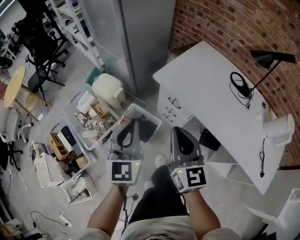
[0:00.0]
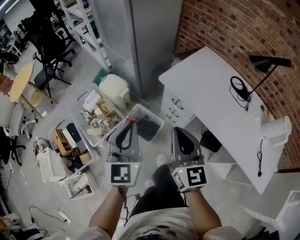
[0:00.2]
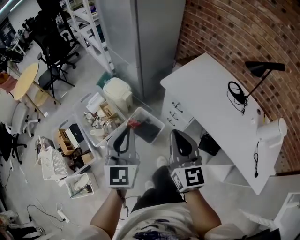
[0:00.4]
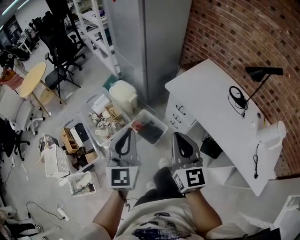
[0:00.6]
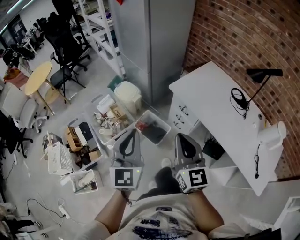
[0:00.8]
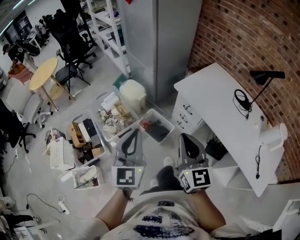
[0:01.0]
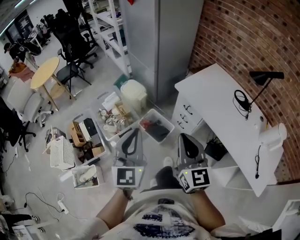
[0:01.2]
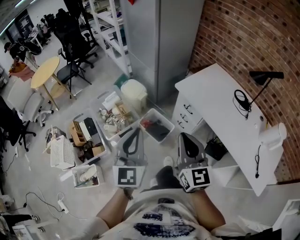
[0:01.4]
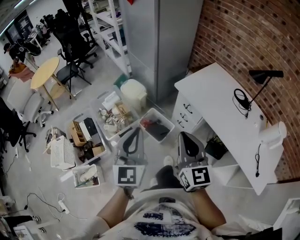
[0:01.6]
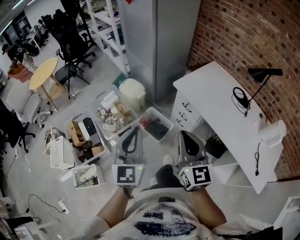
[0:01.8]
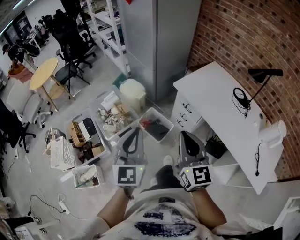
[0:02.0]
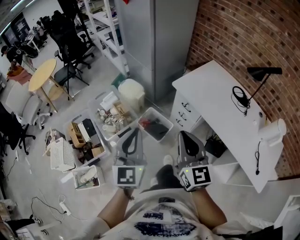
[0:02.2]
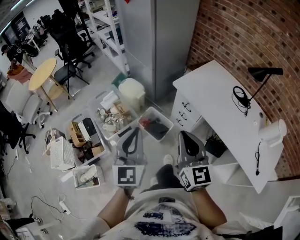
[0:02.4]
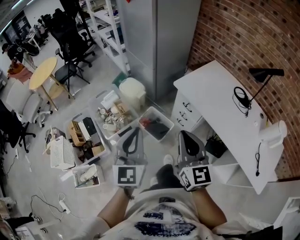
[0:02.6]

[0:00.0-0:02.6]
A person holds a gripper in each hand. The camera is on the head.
0:00.0 to 0:01.2: The grippers both shift backward, upward and to the left by roughly 20 cm.
0:01.2 to 0:02.6: Both grippers stay about where they are.

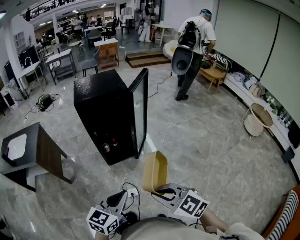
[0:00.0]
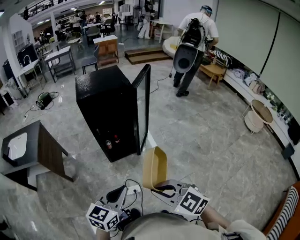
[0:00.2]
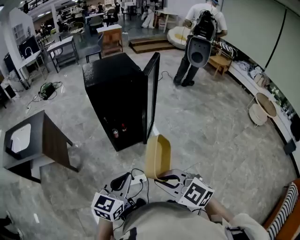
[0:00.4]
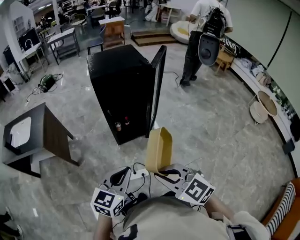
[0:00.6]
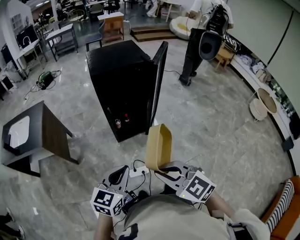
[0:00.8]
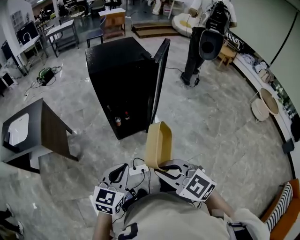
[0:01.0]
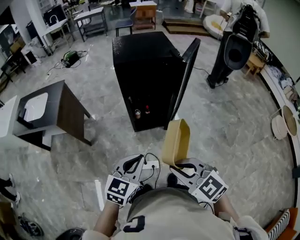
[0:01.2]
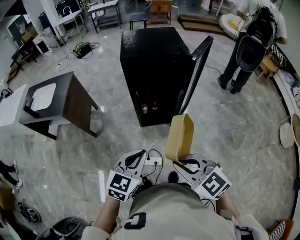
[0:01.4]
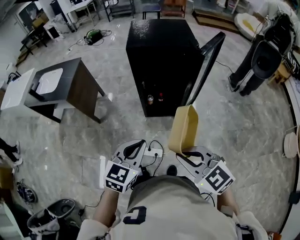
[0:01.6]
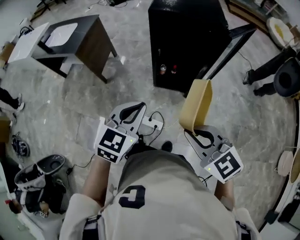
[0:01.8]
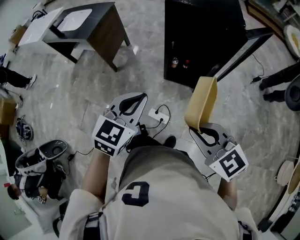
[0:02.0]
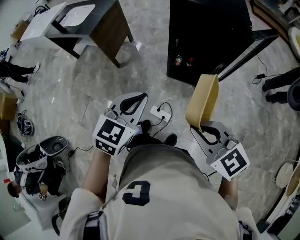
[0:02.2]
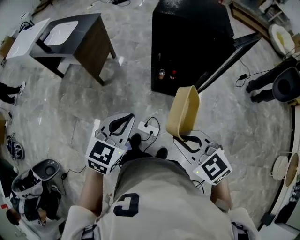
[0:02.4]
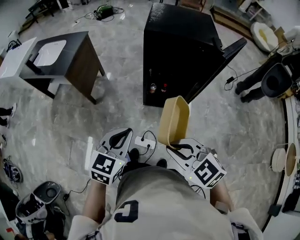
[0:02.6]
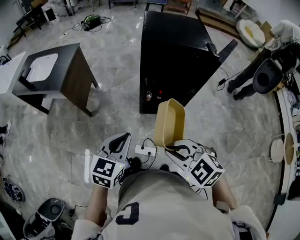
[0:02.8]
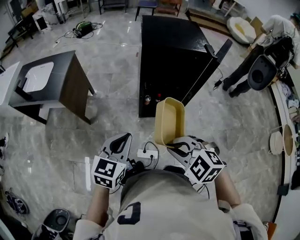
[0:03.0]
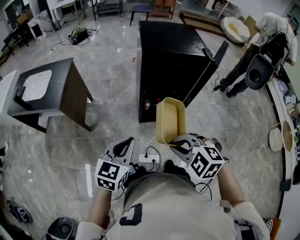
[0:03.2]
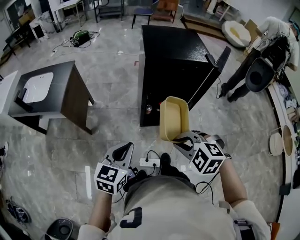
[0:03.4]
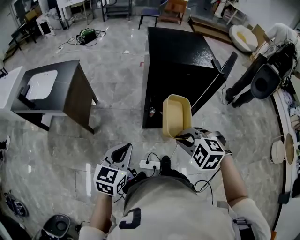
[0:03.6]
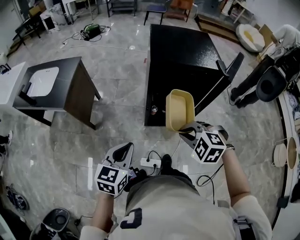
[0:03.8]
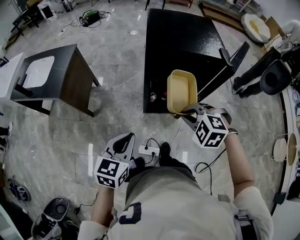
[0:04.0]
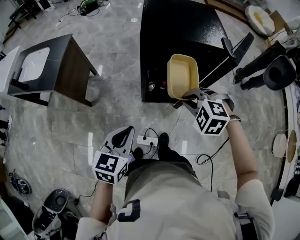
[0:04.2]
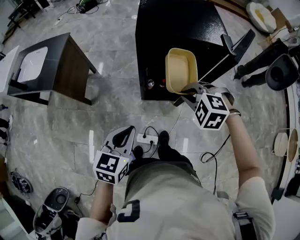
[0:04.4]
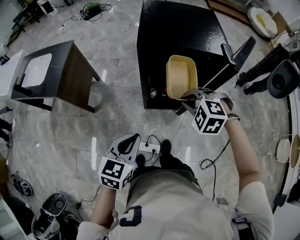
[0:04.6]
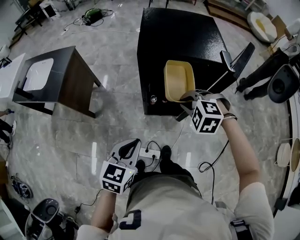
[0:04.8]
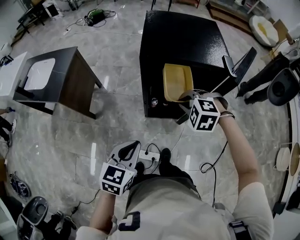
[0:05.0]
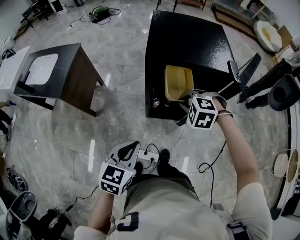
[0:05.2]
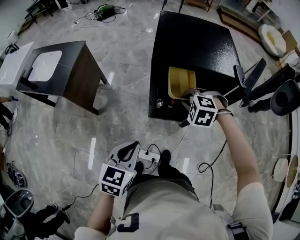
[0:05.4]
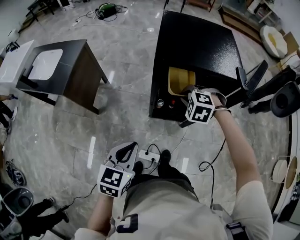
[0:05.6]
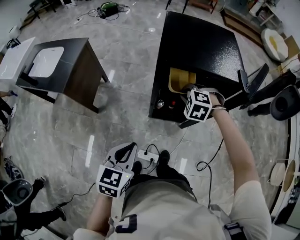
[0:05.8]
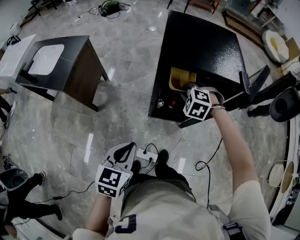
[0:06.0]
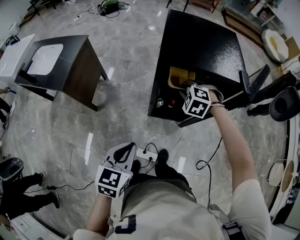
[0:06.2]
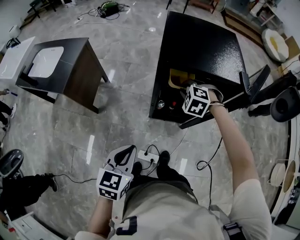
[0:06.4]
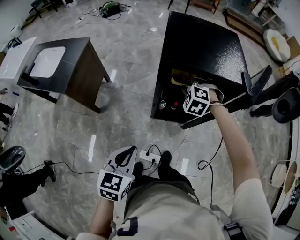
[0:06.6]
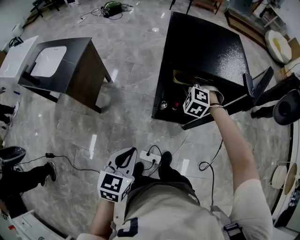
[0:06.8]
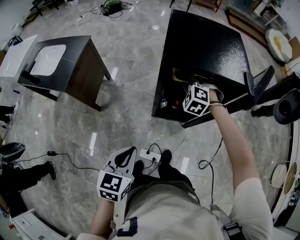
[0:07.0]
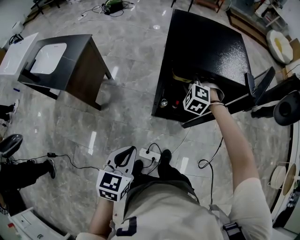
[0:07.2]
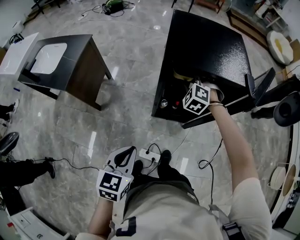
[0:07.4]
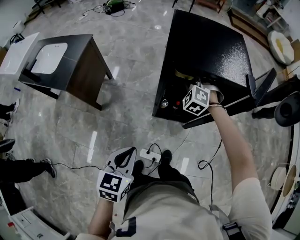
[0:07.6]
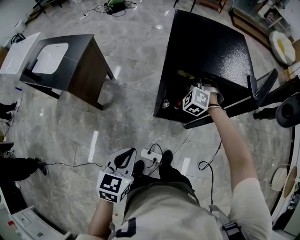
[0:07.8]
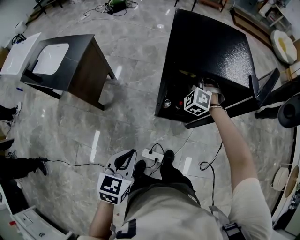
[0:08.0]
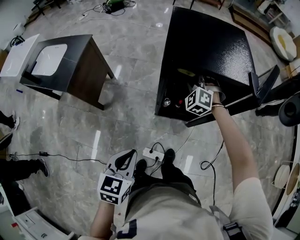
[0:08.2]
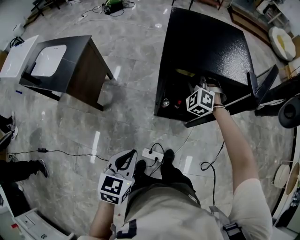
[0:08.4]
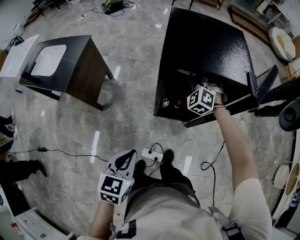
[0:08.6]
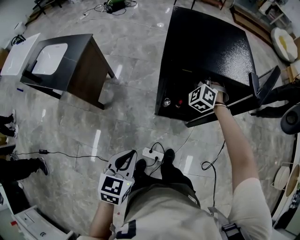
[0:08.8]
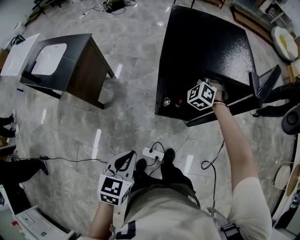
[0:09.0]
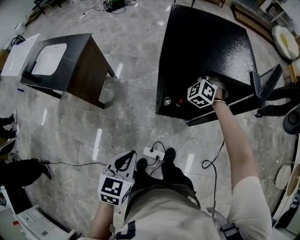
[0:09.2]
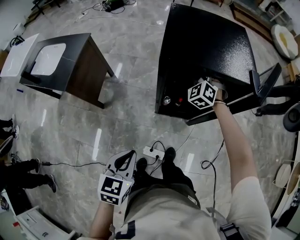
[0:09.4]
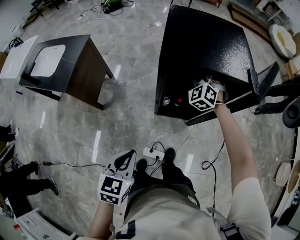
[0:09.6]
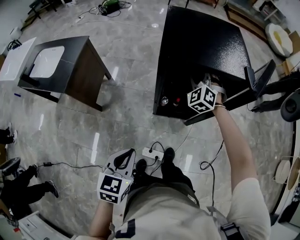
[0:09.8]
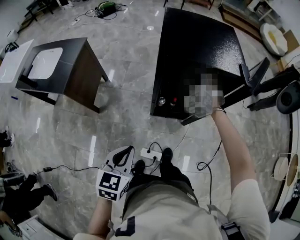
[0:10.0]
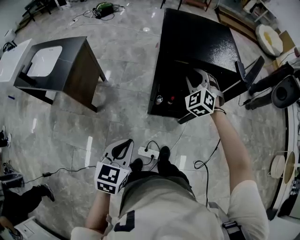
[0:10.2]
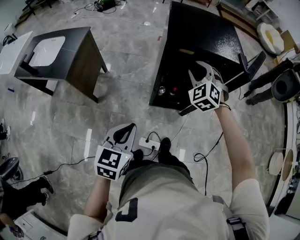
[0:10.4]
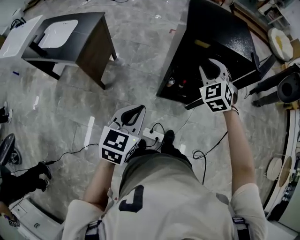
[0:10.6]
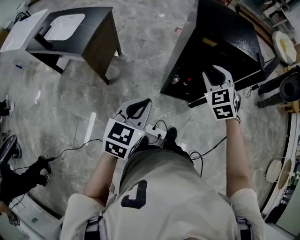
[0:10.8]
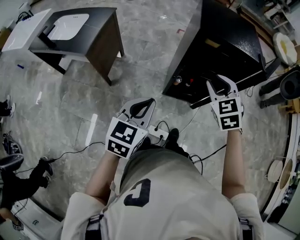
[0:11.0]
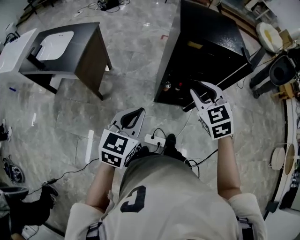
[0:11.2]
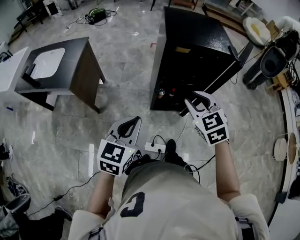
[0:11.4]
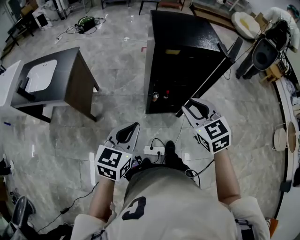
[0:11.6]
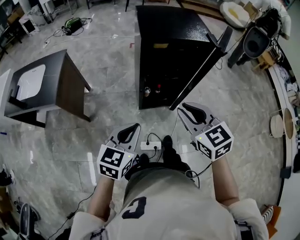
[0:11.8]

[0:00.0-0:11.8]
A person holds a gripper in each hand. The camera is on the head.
0:00.0 to 0:01.4: Both grippers move forward and to the left, about 15 cm.
0:01.4 to 0:03.0: The right gripper goes roughly 15 cm forward, to the left and downward, and swivels some 30 degrees; the left gripper travels forward and to the left by some 15 cm.
0:03.0 to 0:04.4: The left gripper moves forward and to the right, about 10 cm. The right gripper shifts roughly 25 cm forward and to the right, and changes its angle by roughly 20 degrees.
0:04.4 to 0:06.0: The right gripper heads forward, covering roughly 15 cm.
0:06.0 to 0:07.4: The right gripper goes about 10 cm forward.
0:07.4 to 0:08.8: The right gripper changes place by some 5 cm.
0:08.8 to 0:10.4: The right gripper travels backward and upward by approximately 15 cm.
0:10.4 to 0:11.8: The right gripper travels backward by some 25 cm, and rolls clockwise, seen from behind, by about 50 degrees.

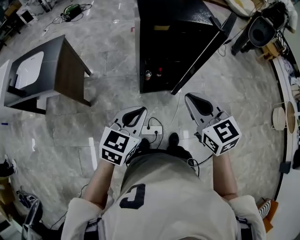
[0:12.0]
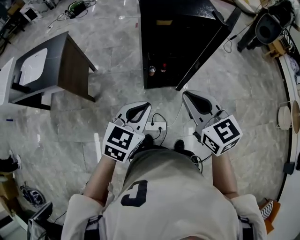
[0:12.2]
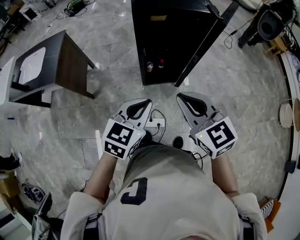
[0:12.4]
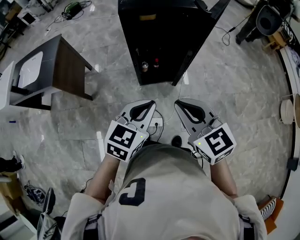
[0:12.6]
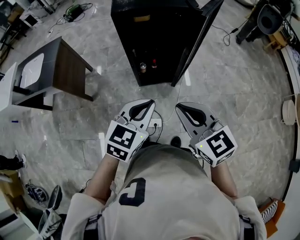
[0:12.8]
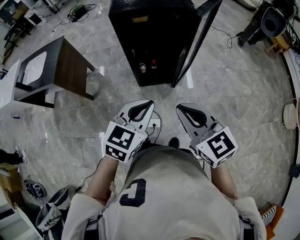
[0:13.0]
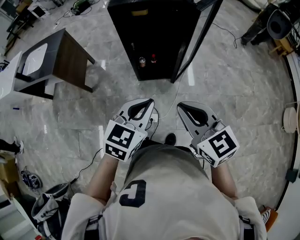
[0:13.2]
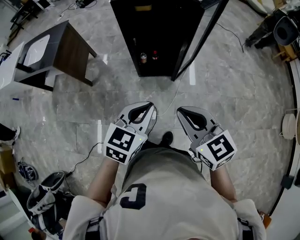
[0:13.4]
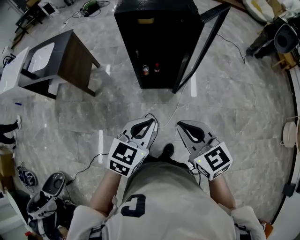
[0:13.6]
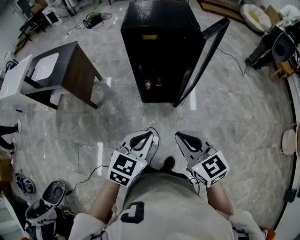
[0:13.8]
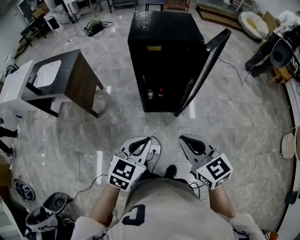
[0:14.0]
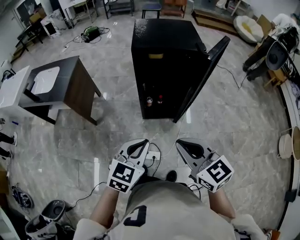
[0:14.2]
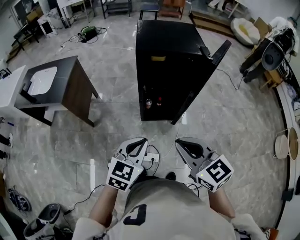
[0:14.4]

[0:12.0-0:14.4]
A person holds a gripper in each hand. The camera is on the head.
0:12.0 to 0:13.2: The right gripper heads to the right and backward, covering roughly 20 cm; the left gripper shifts approximately 20 cm to the right.
0:13.2 to 0:14.4: The right gripper heads to the left and forward, covering approximately 10 cm. Meanwhile the left gripper goes roughly 15 cm to the left.

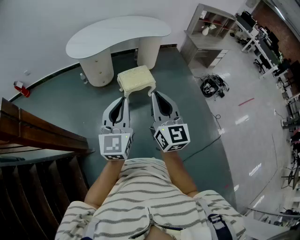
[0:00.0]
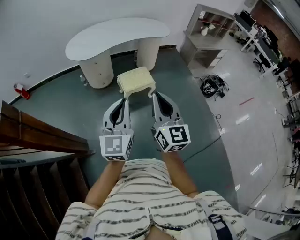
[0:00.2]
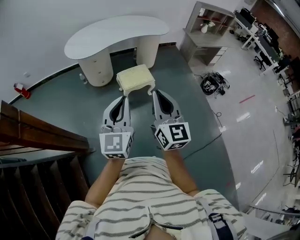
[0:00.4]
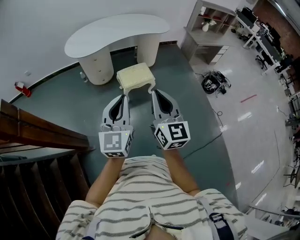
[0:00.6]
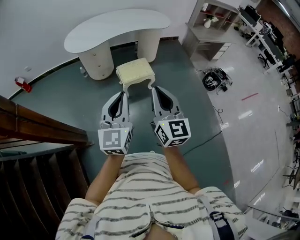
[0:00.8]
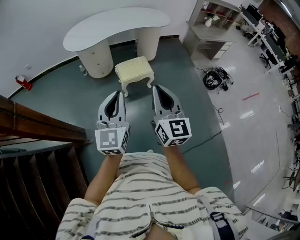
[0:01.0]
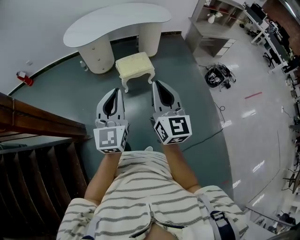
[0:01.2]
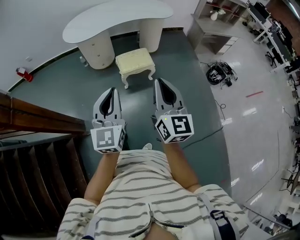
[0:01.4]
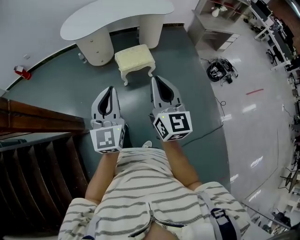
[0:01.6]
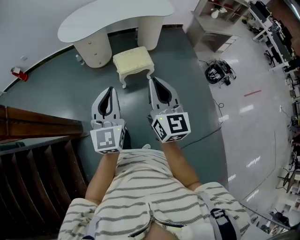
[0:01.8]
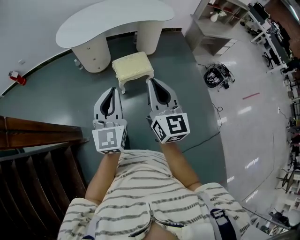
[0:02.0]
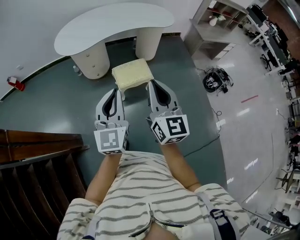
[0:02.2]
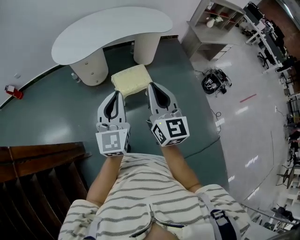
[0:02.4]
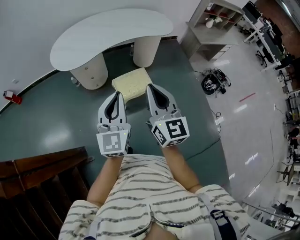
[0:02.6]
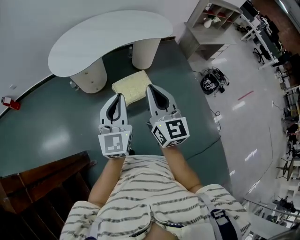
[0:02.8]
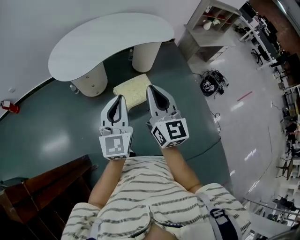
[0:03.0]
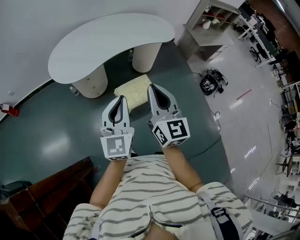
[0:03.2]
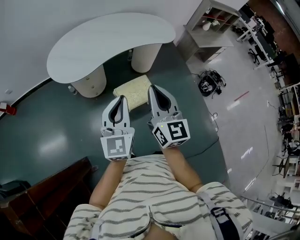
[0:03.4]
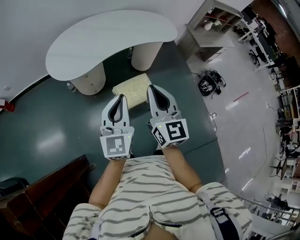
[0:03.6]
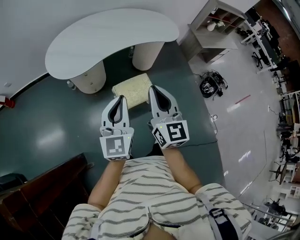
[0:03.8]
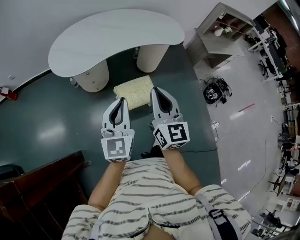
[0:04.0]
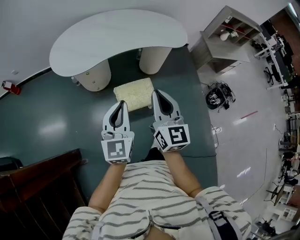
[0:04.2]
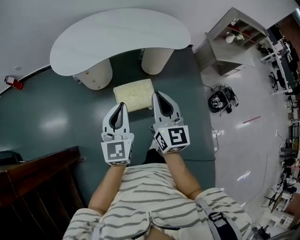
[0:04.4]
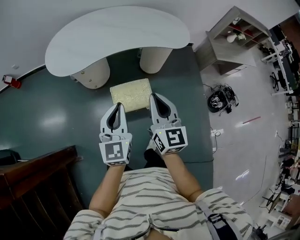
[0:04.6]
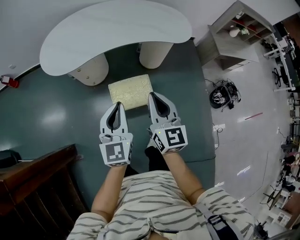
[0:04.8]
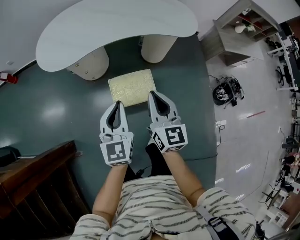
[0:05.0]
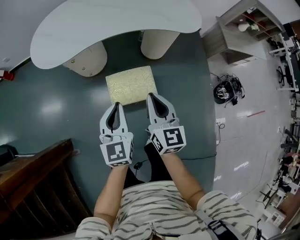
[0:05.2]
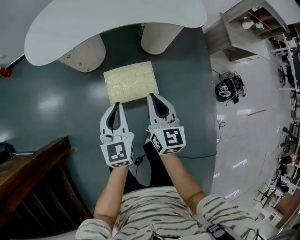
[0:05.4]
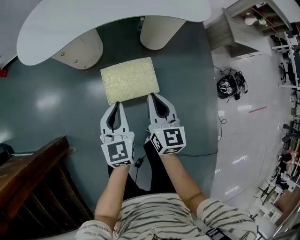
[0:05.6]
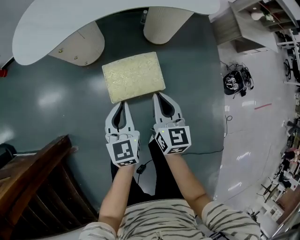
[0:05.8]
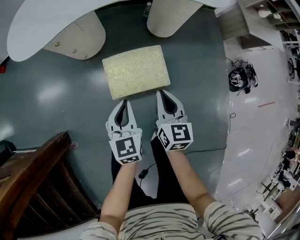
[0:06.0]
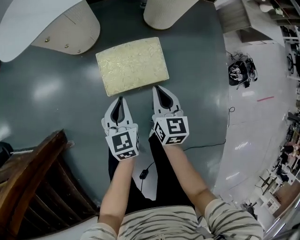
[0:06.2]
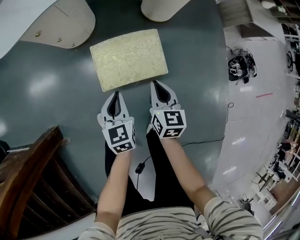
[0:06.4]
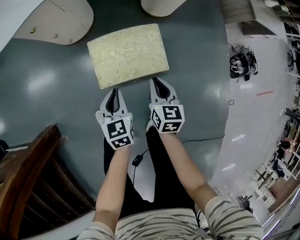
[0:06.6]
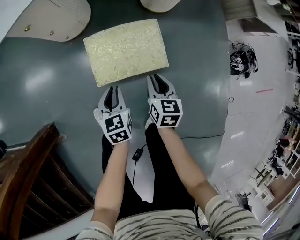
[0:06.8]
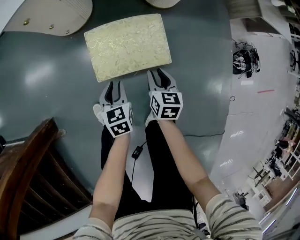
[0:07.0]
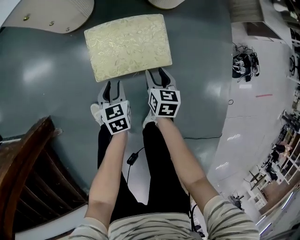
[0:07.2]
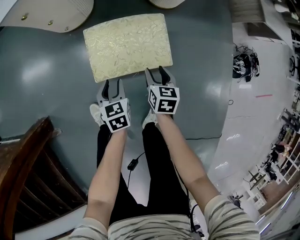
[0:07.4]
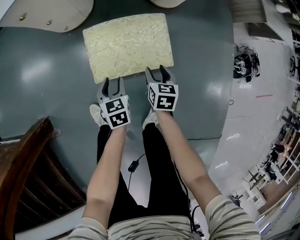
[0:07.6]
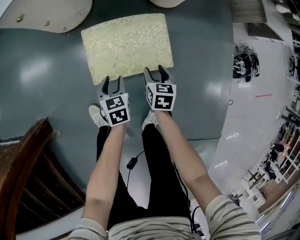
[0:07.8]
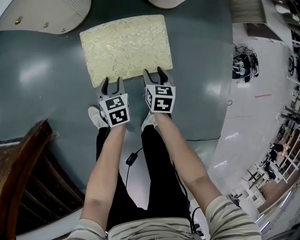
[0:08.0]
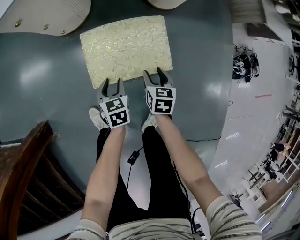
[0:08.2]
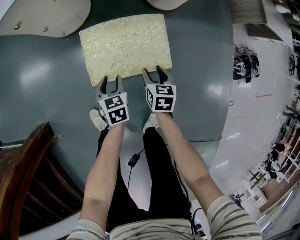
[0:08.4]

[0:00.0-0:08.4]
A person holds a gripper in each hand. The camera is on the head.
0:00.0 to 0:01.4: The right gripper shifts roughly 10 cm to the right, while the left gripper is displaced to the right by approximately 5 cm.
0:01.4 to 0:02.8: Both grippers move forward, about 30 cm.
0:02.8 to 0:04.2: The left gripper travels forward and downward by approximately 10 cm; the right gripper travels forward and to the right by some 10 cm.
0:04.2 to 0:05.6: The grippers both shift downward by approximately 30 cm. The left gripper changes its angle by approximately 20 degrees.
0:05.6 to 0:07.0: Both grippers move downward, approximately 35 cm. The right gripper changes its angle by roughly 20 degrees, and opens its fingers; the left gripper turns by some 30 degrees.
0:07.0 to 0:08.4: The two grippers go some 10 cm downward. The right gripper opens its fingers.
